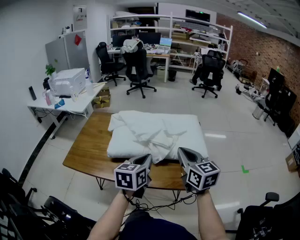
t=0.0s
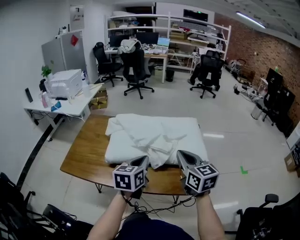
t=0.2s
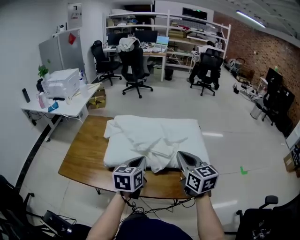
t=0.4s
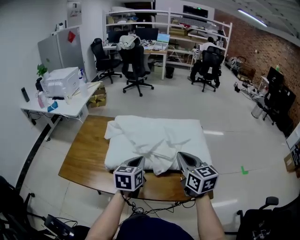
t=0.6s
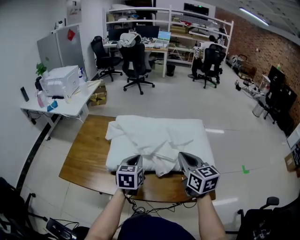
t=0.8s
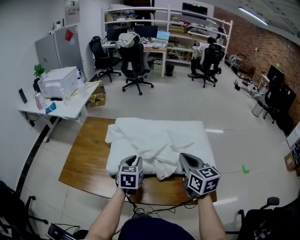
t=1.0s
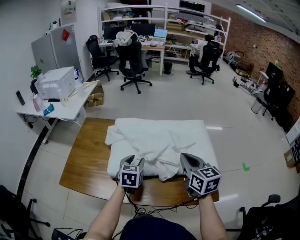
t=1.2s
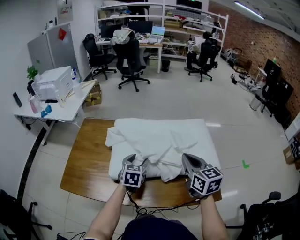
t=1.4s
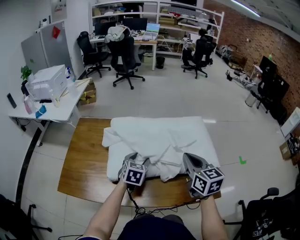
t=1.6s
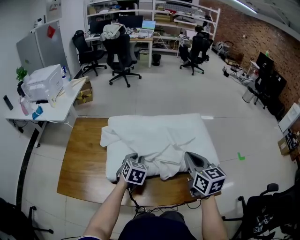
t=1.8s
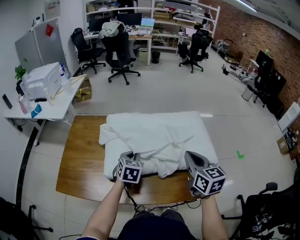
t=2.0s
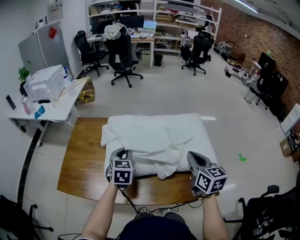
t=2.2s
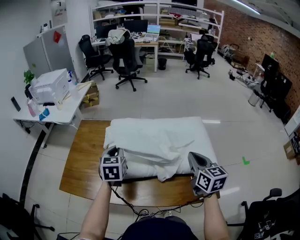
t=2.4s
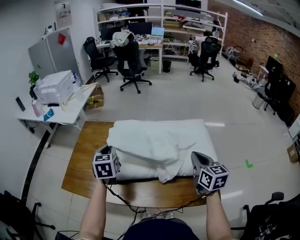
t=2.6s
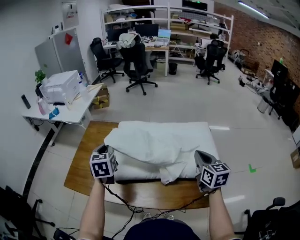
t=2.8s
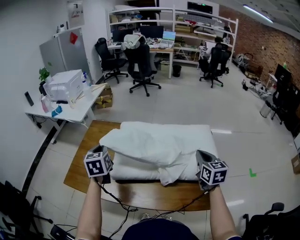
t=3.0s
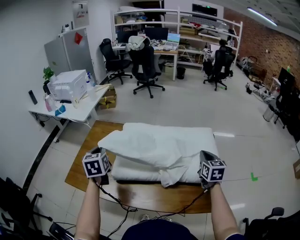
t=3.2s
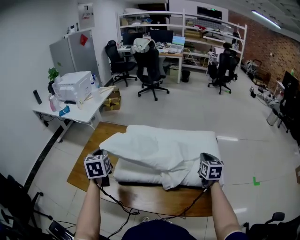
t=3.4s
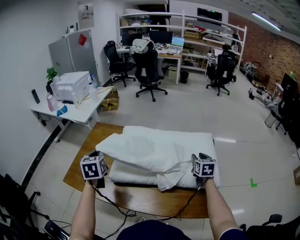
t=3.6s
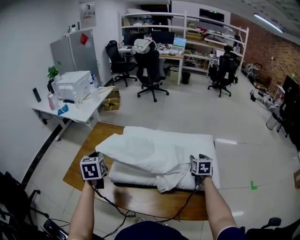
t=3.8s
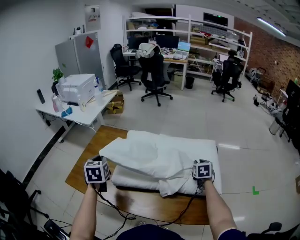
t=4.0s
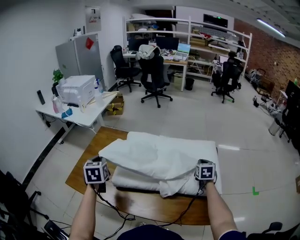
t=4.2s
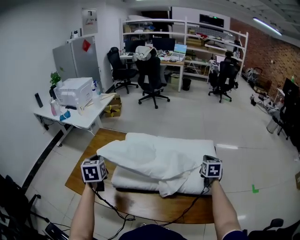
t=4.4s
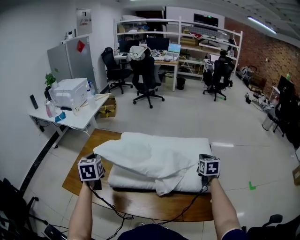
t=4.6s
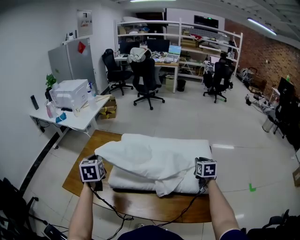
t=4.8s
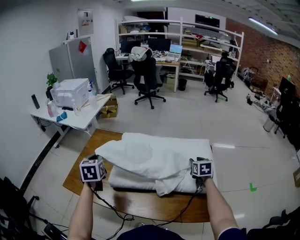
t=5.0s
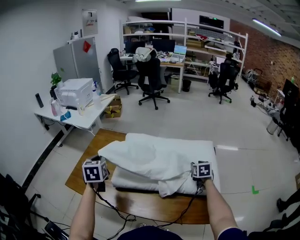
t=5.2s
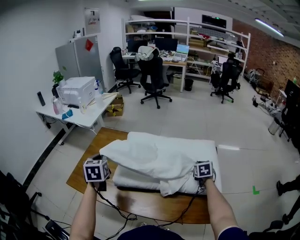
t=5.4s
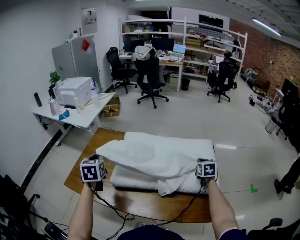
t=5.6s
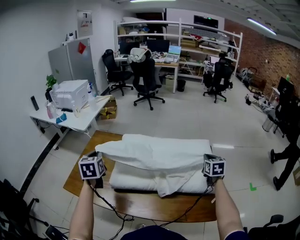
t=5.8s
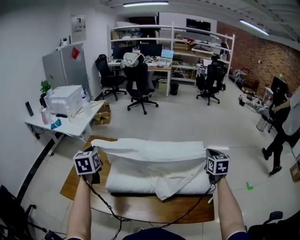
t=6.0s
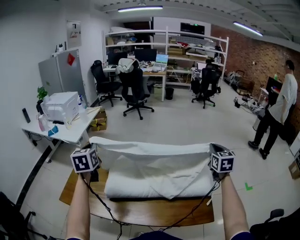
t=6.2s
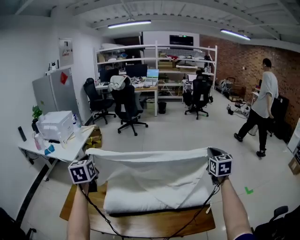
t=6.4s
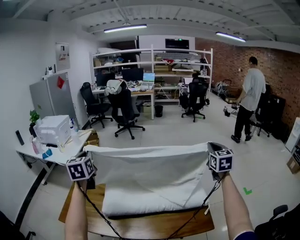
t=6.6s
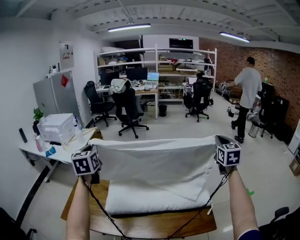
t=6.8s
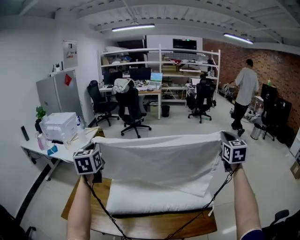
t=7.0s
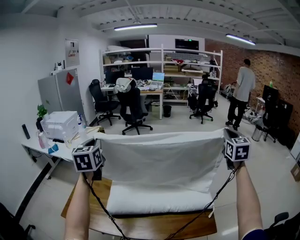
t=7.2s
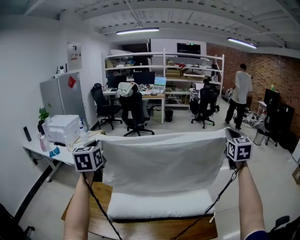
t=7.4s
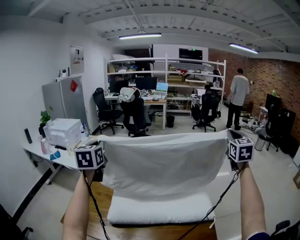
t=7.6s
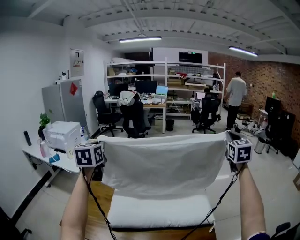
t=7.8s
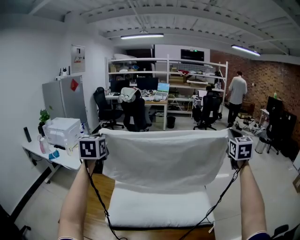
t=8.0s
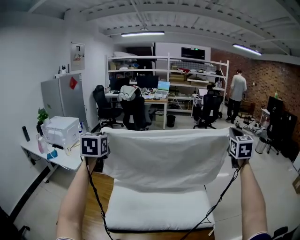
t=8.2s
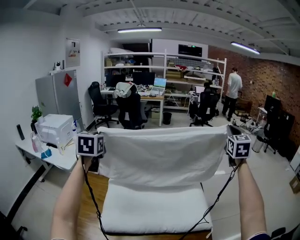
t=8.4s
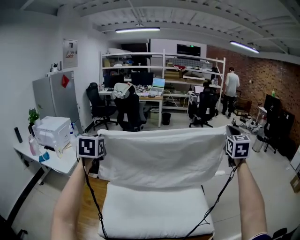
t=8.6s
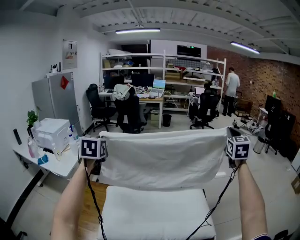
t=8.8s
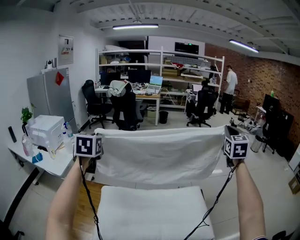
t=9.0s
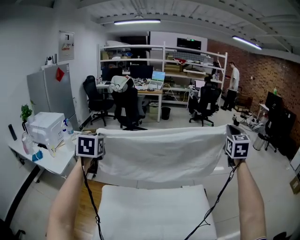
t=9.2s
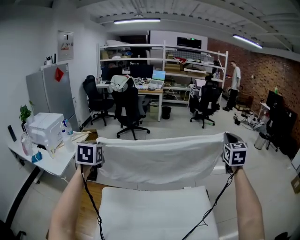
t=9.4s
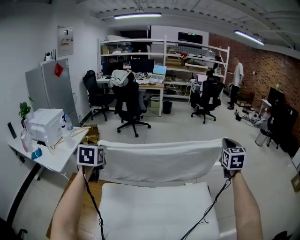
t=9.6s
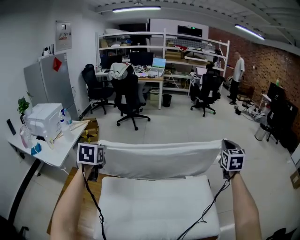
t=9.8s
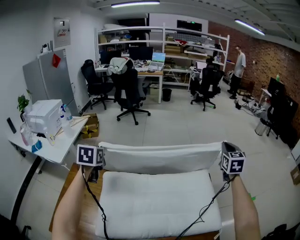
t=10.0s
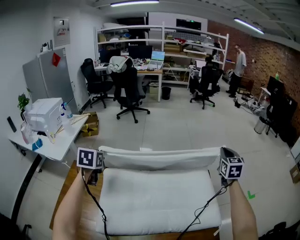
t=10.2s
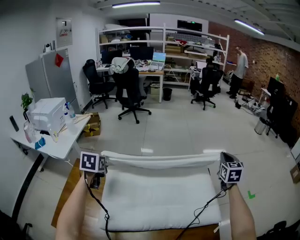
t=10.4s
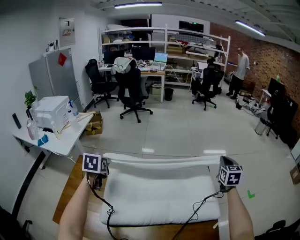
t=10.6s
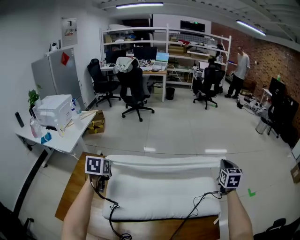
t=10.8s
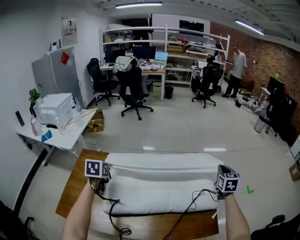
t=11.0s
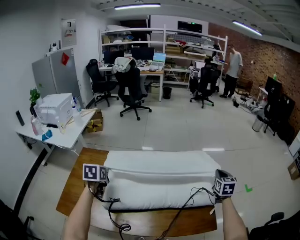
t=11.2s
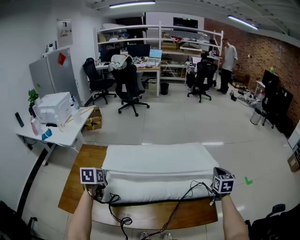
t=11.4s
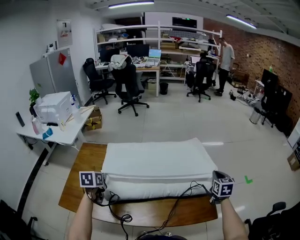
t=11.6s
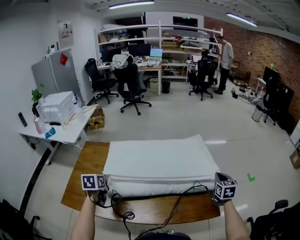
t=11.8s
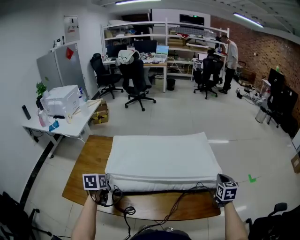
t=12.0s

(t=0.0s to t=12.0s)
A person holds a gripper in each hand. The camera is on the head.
t=0.0s - t=1.6s: The left gripper is displaced forward and downward by about 25 cm, swivels approximately 30 degrees, and opens up. Meanwhile the right gripper travels forward by approximately 10 cm.
t=1.6s - t=3.0s: The right gripper moves to the right and forward, about 10 cm; the left gripper heads to the left and upward, covering roughly 25 cm, swivels roughly 40 degrees, and closes up.
t=3.0s - t=4.4s: The right gripper heads to the right, forward and downward, covering some 15 cm, and opens, then closes again.
t=4.4s - t=6.0s: The grippers both shift upward by about 10 cm. The right gripper opens, then closes again.
t=6.0s - t=7.6s: The right gripper goes approximately 30 cm upward, and swivels approximately 30 degrees, while the left gripper travels upward and forward by some 20 cm.
t=7.6s - t=9.0s: Both grippers travel together forward, approximately 15 cm.
t=9.0s - t=10.4s: The two grippers go approximately 25 cm downward. The left gripper turns by some 20 degrees.
t=10.4s - t=12.0s: Both grippers travel together backward and downward, some 30 cm.

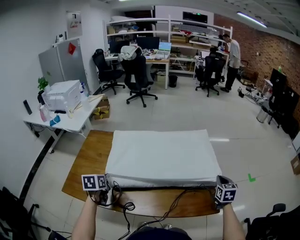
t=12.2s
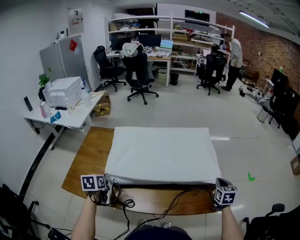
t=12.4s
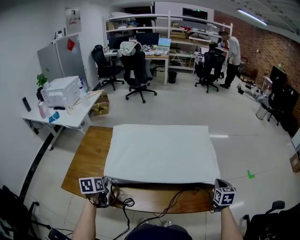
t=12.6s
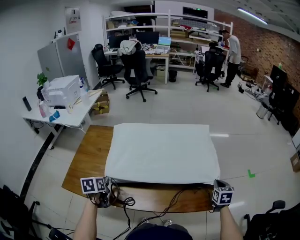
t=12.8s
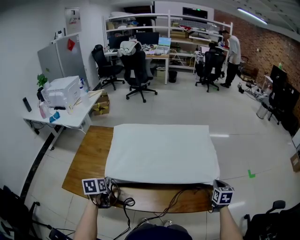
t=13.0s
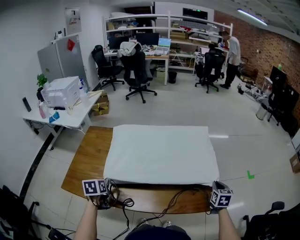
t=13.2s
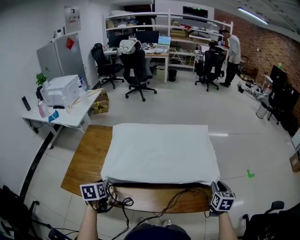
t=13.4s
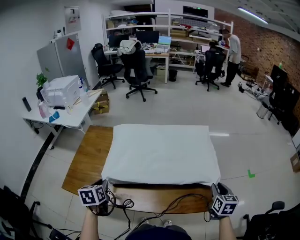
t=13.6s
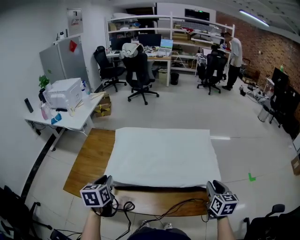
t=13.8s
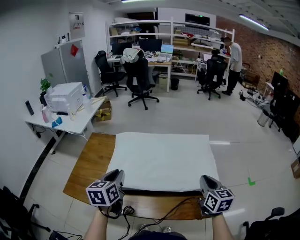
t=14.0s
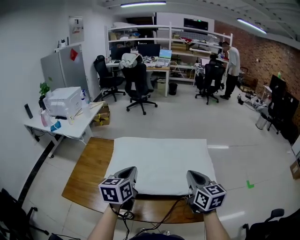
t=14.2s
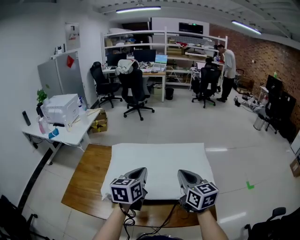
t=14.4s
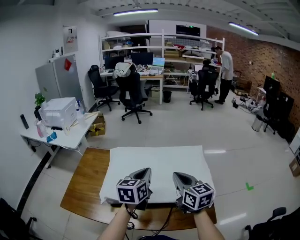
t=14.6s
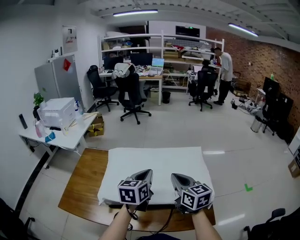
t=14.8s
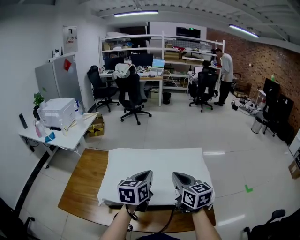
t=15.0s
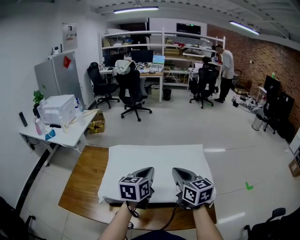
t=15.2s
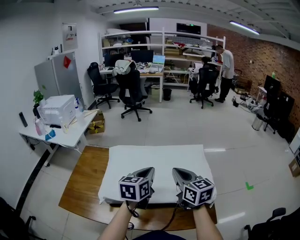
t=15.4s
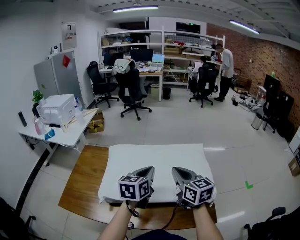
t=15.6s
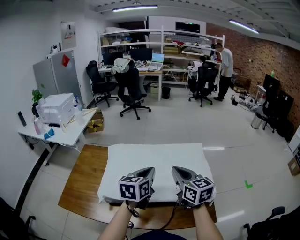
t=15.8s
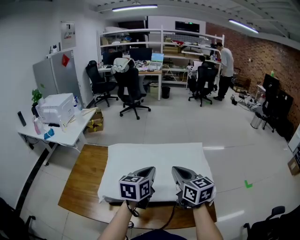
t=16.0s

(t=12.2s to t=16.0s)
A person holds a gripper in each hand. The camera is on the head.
t=12.2s - t=13.4s: Both grippers travel together backward, about 5 cm. The right gripper opens its fingers.
t=13.4s - t=14.8s: The left gripper heads to the right, upward and forward, covering about 35 cm, angles its fingers upward, by roughly 30 degrees, and closes up. Meanwhile the right gripper heads to the left, upward and forward, covering some 30 cm, rotates roughly 40 degrees, and closes.
t=14.8s - t=16.0s: The grippers move only a little.

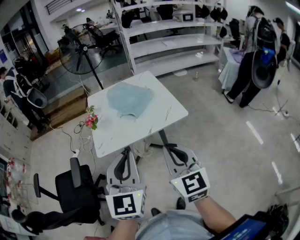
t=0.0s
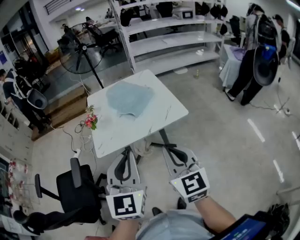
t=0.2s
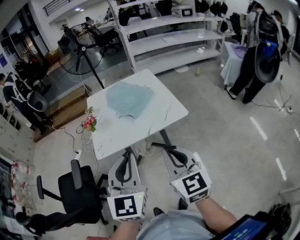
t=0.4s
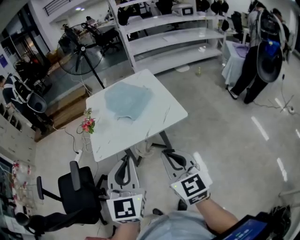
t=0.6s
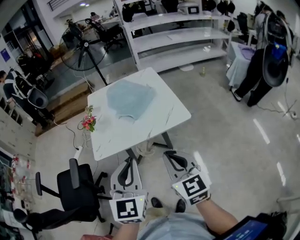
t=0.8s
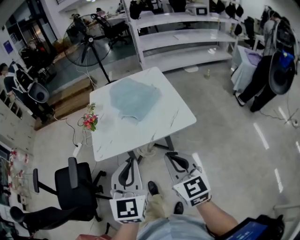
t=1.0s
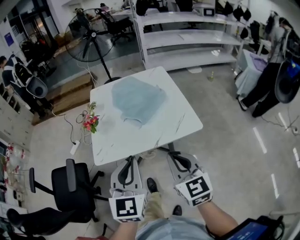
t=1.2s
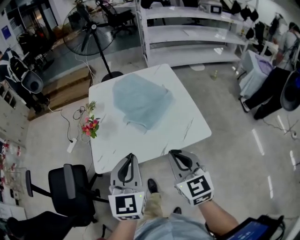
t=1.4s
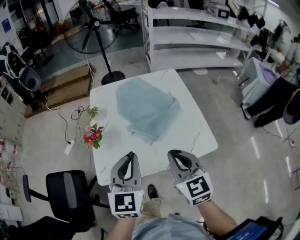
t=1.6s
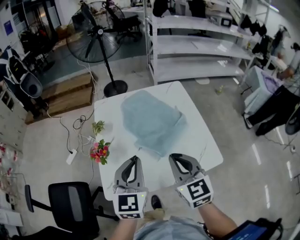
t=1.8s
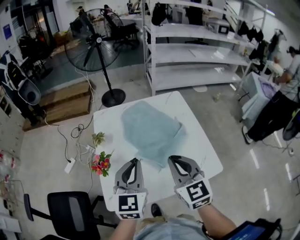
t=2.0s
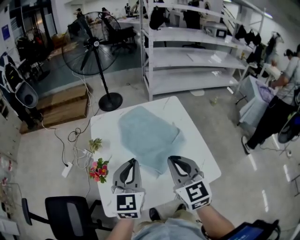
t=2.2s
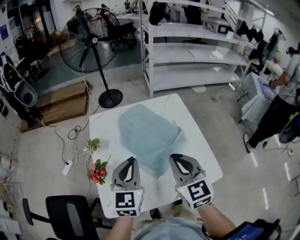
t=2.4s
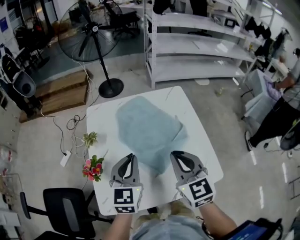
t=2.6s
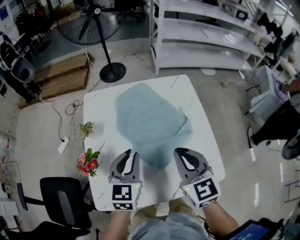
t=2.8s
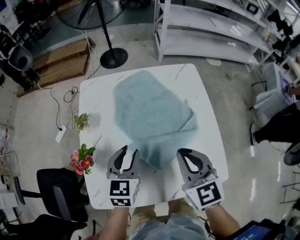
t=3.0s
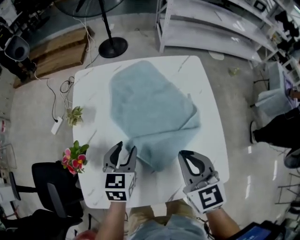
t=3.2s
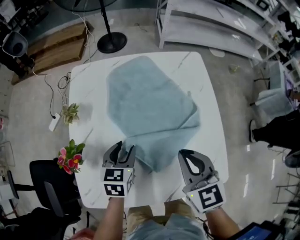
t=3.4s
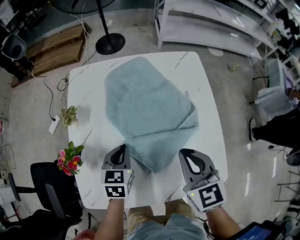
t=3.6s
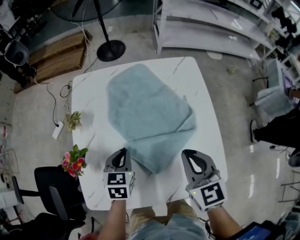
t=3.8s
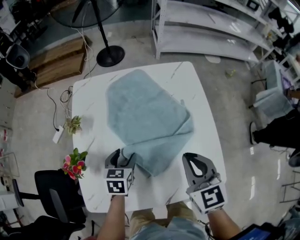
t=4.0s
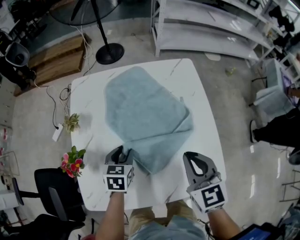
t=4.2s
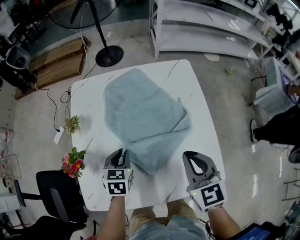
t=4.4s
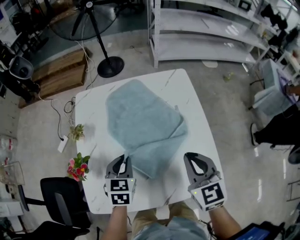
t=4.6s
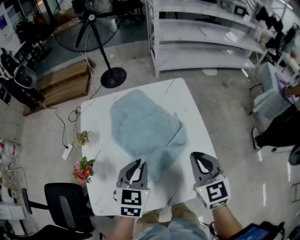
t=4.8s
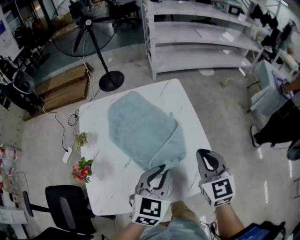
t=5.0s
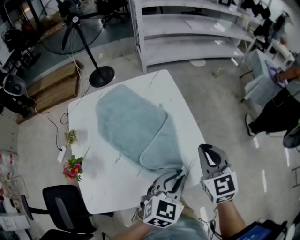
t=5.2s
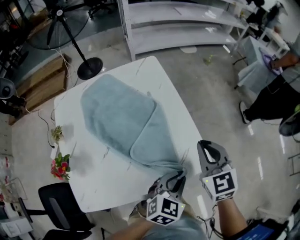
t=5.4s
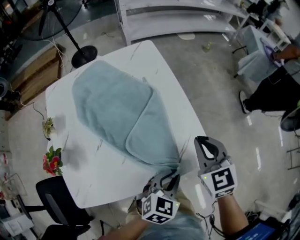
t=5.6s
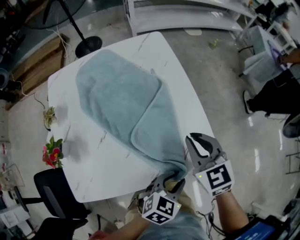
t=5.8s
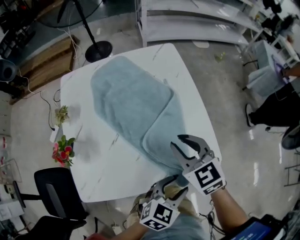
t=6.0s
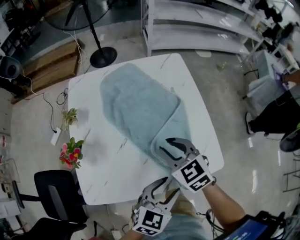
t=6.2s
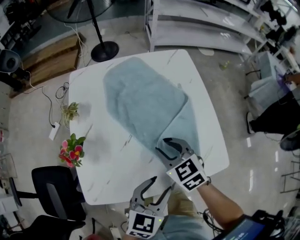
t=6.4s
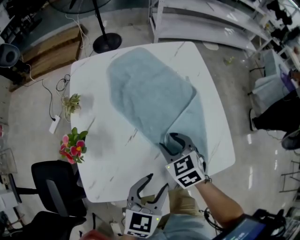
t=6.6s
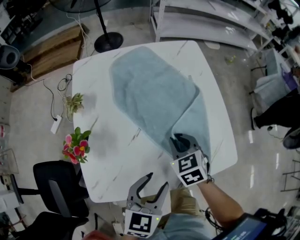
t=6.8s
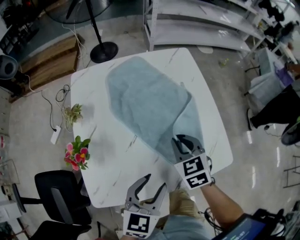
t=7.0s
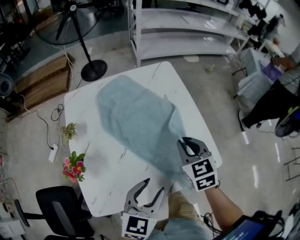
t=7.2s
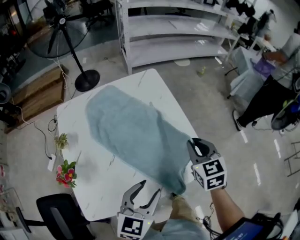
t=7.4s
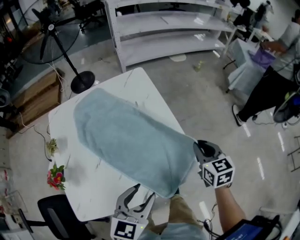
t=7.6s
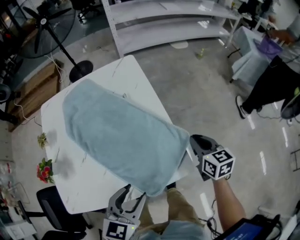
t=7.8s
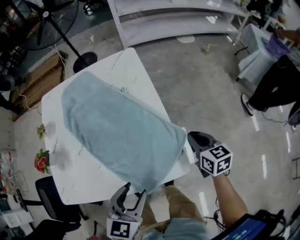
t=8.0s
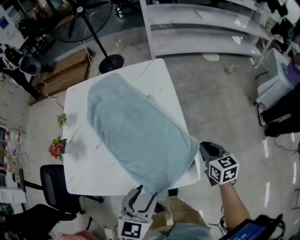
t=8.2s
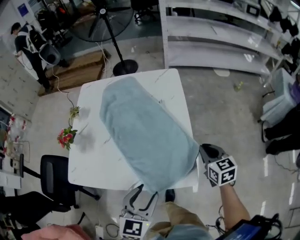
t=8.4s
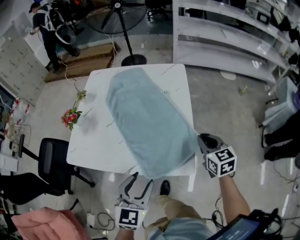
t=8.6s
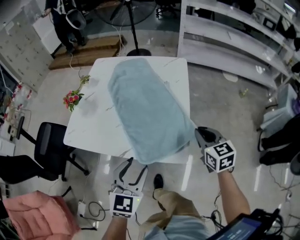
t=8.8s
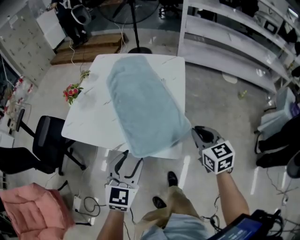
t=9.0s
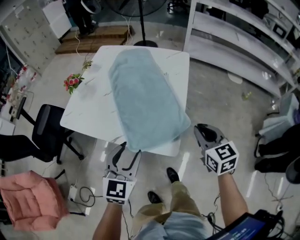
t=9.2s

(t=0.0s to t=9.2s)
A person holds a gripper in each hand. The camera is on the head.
t=0.0s - t=1.6s: Both grippers travel together forward, some 30 cm.
t=1.6s - t=3.0s: The right gripper goes roughly 20 cm forward. Meanwhile the left gripper moves forward and downward, about 25 cm, and opens.
t=3.0s - t=4.6s: The right gripper goes roughly 5 cm to the right, while the left gripper travels downward and back again, approximately 10 cm each way, and opens, then closes once more.
t=4.6s - t=6.2s: The left gripper goes up and down, some 15 cm each way, reversing 2 times, swivels some 40 degrees, and opens up; the right gripper ends up roughly 10 cm from where it was, and opens up.
t=6.2s - t=7.6s: The right gripper goes roughly 25 cm to the right, and changes its angle by roughly 40 degrees; the left gripper travels to the left and back again, roughly 10 cm each way.
t=7.6s - t=9.2s: The left gripper shifts by some 10 cm, and swivels about 50 degrees, while the right gripper moves about 10 cm downward and comes back, and changes its angle by about 50 degrees.
